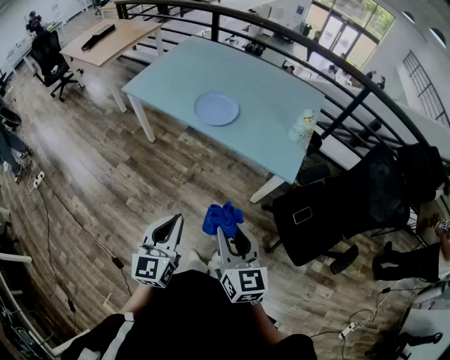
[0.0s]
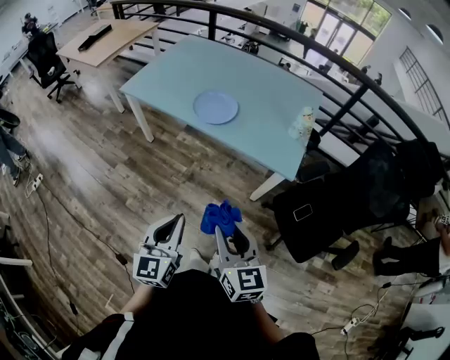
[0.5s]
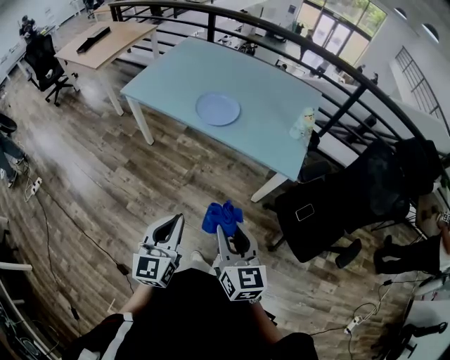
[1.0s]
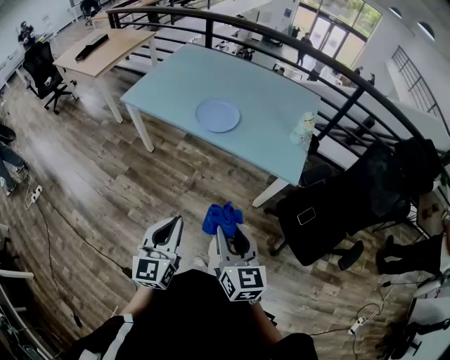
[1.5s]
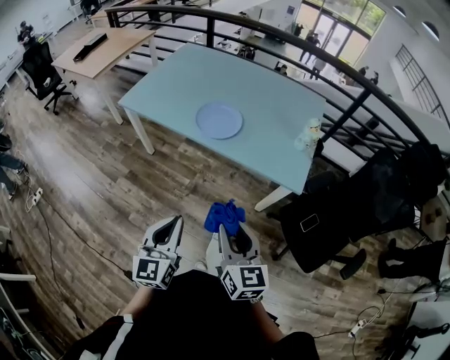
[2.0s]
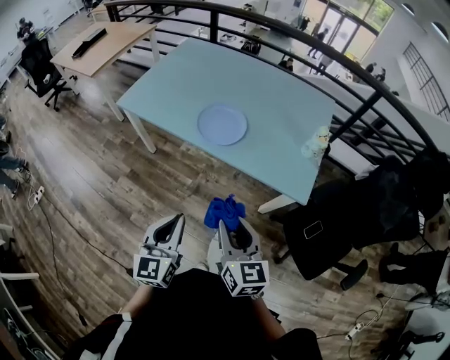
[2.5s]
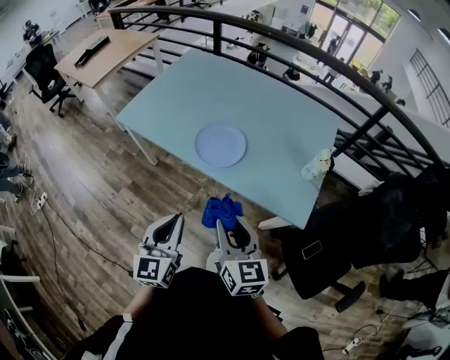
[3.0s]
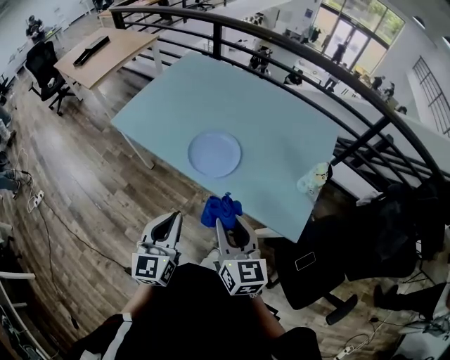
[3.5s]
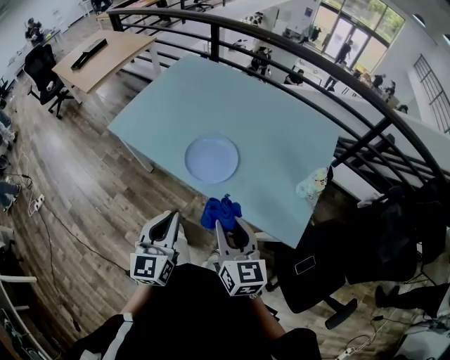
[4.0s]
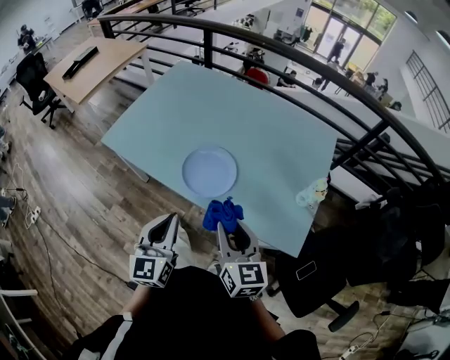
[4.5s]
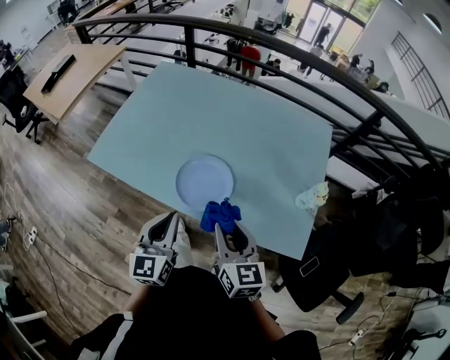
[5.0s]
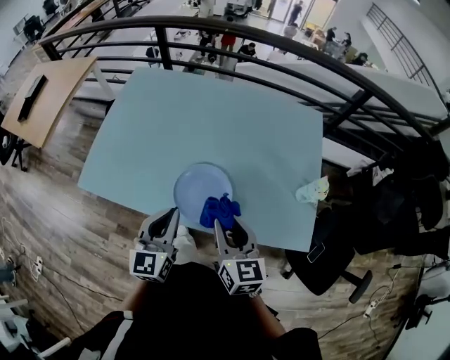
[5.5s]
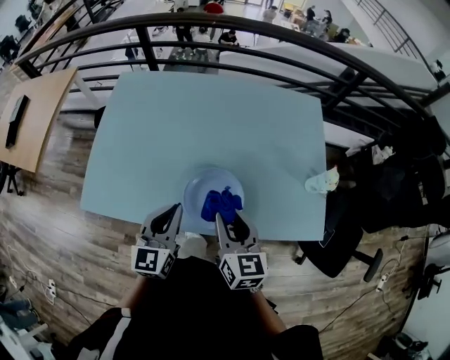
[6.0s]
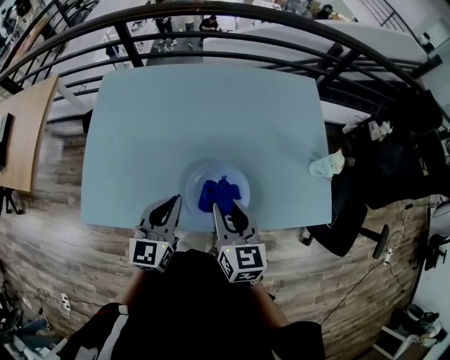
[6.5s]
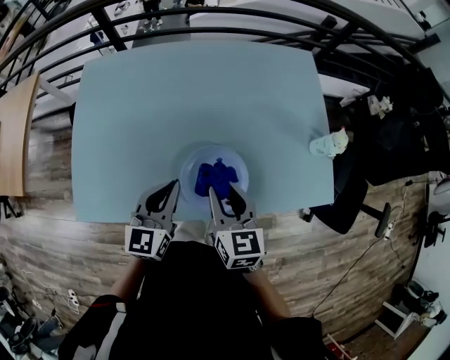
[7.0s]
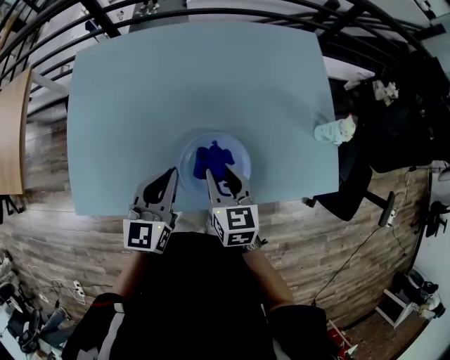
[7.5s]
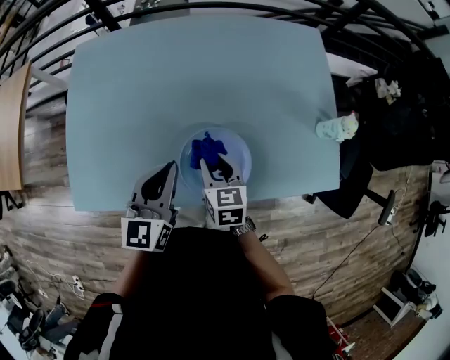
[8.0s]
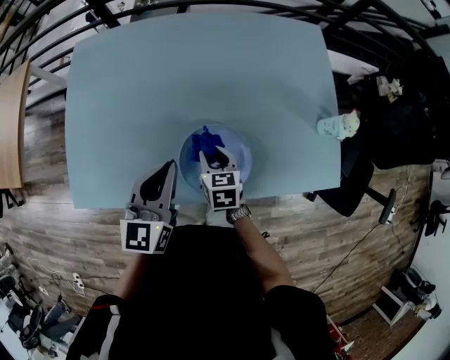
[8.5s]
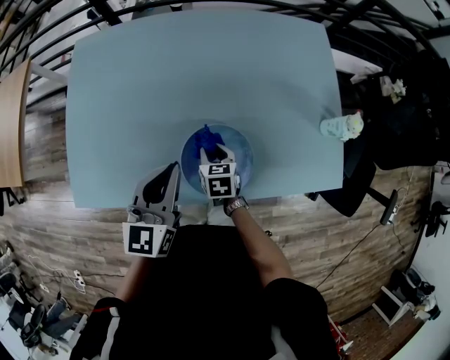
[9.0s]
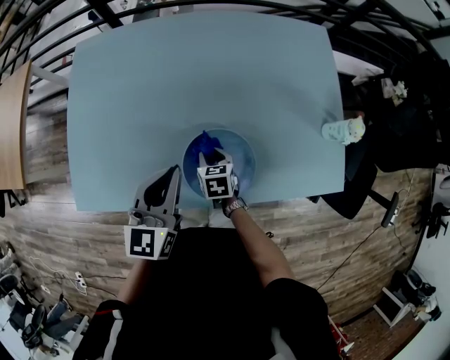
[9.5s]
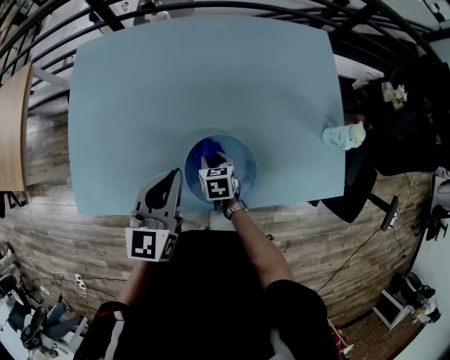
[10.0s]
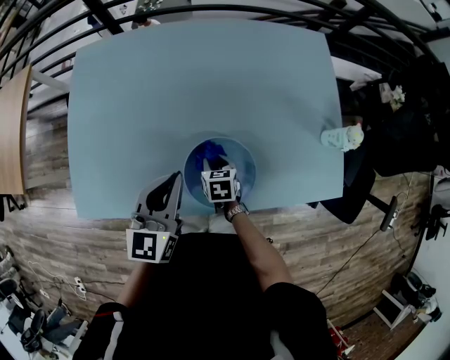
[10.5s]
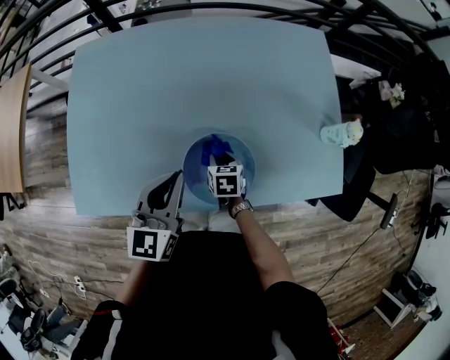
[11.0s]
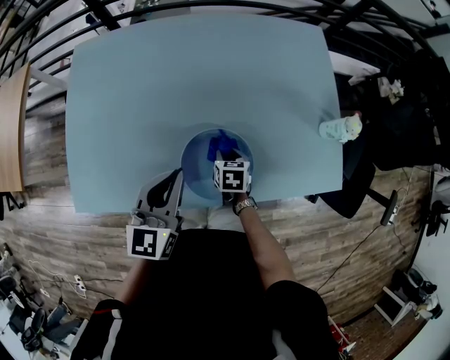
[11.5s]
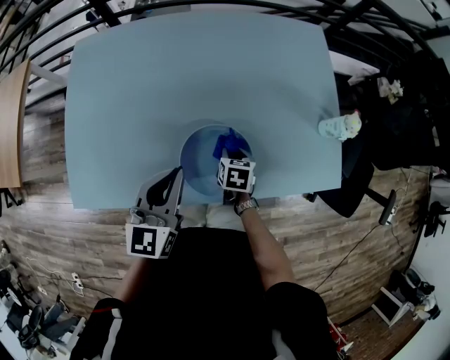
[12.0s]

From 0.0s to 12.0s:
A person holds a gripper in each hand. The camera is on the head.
From 0.0s to 2.0s: The two grippers go roughly 5 cm forward.
From 2.0s to 4.0s: Both grippers move forward, about 25 cm.
From 4.0s to 6.0s: The right gripper changes place by approximately 25 cm, and rotates roughly 30 degrees, while the left gripper moves roughly 30 cm, and rotates approximately 30 degrees.
From 6.0s to 8.0s: The left gripper is displaced forward by approximately 10 cm; the right gripper moves downward and forward, roughly 20 cm.
From 8.0s to 10.0s: The right gripper goes some 15 cm downward, and swivels approximately 20 degrees.
From 10.0s to 12.0s: The right gripper moves to the right, some 10 cm.

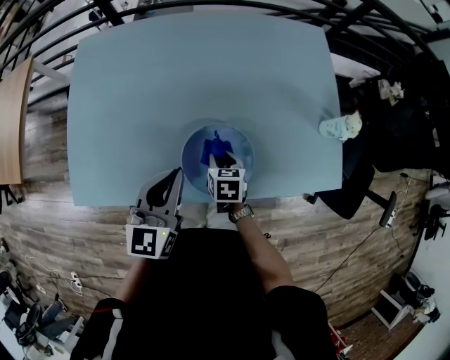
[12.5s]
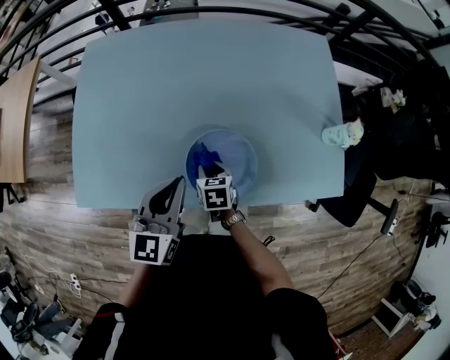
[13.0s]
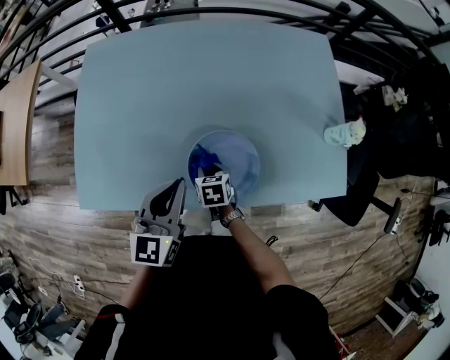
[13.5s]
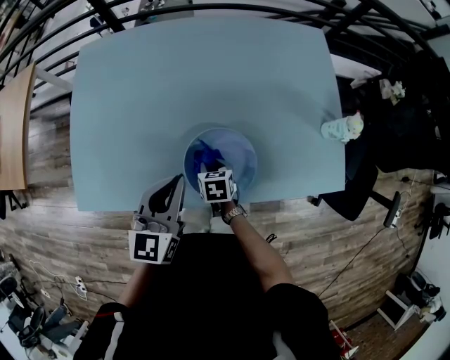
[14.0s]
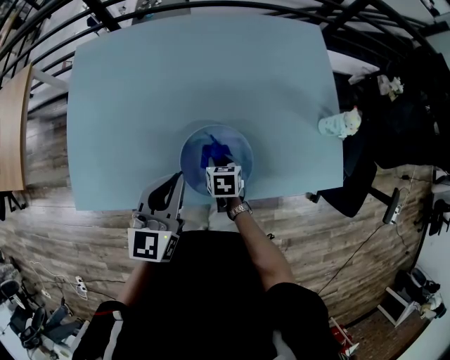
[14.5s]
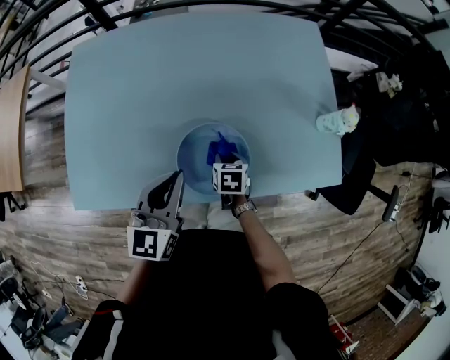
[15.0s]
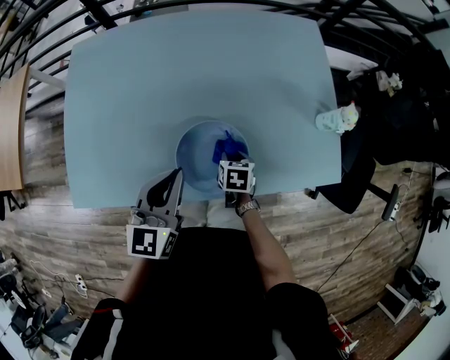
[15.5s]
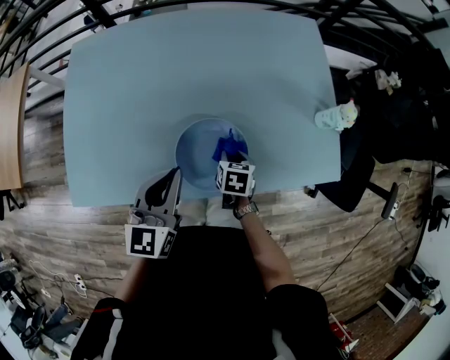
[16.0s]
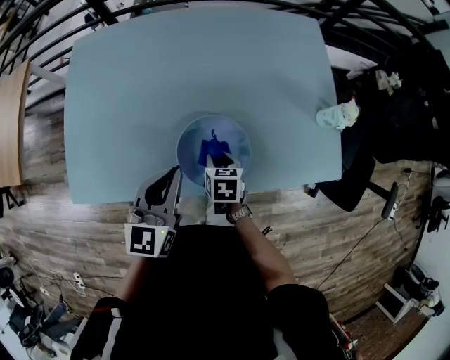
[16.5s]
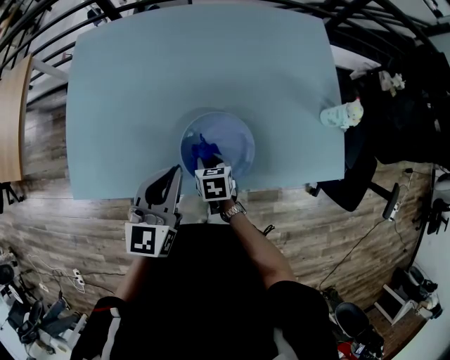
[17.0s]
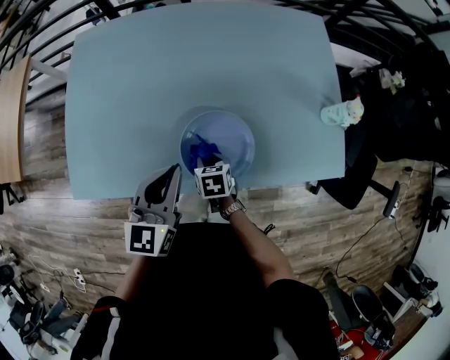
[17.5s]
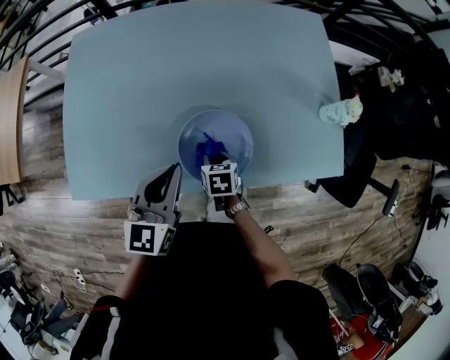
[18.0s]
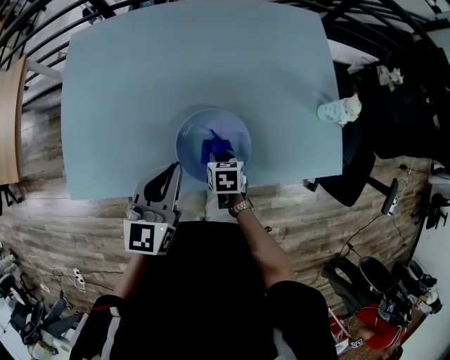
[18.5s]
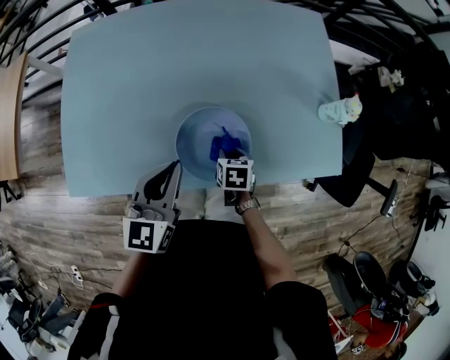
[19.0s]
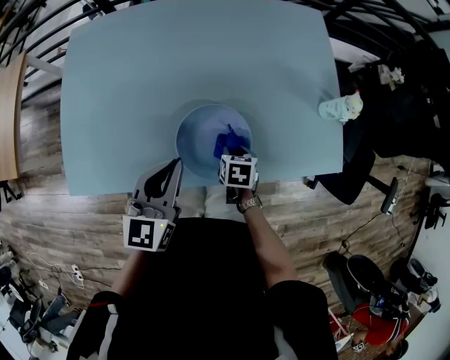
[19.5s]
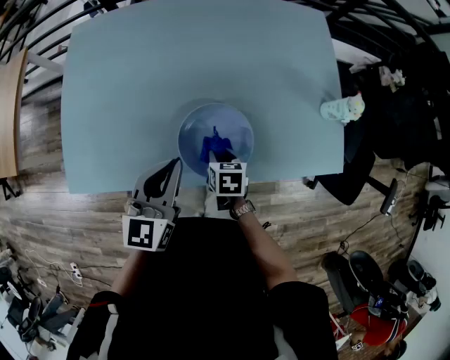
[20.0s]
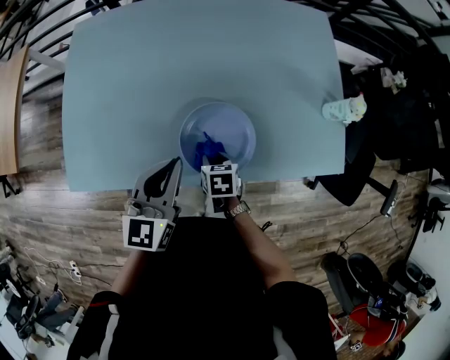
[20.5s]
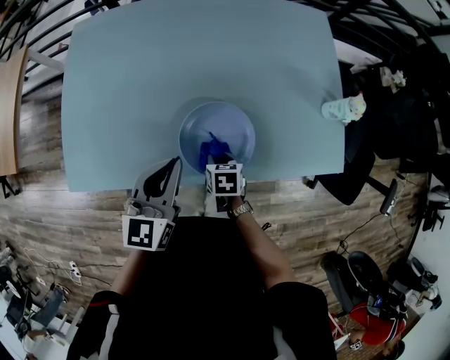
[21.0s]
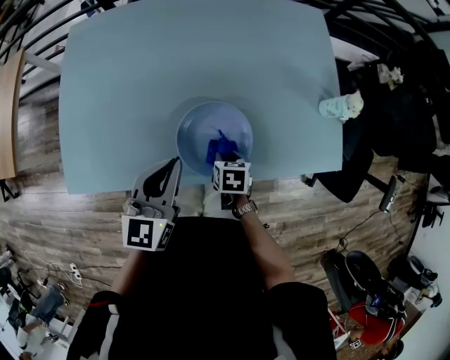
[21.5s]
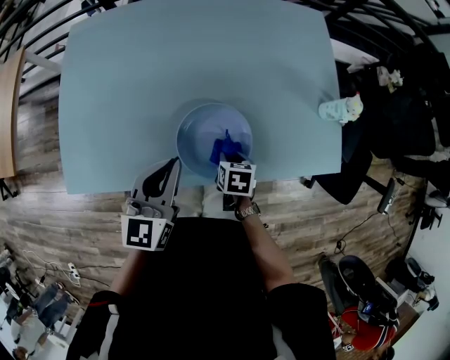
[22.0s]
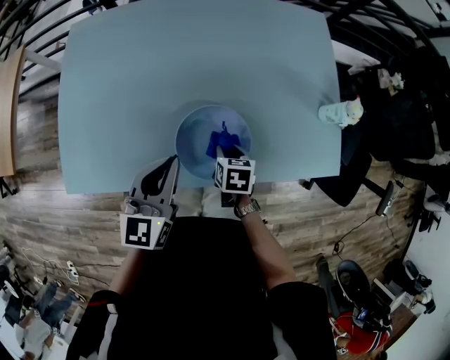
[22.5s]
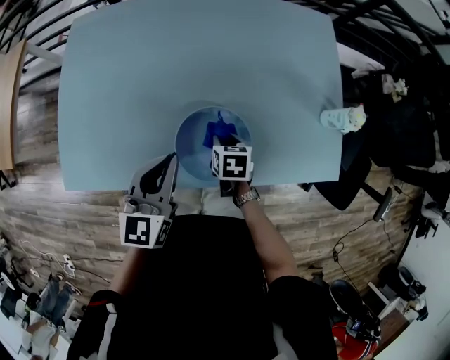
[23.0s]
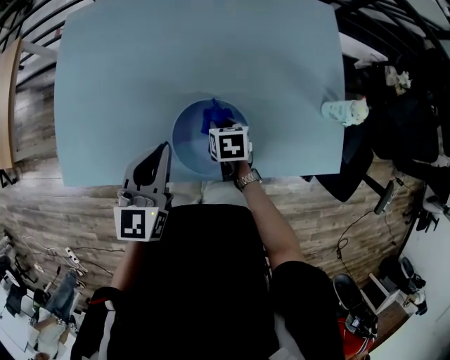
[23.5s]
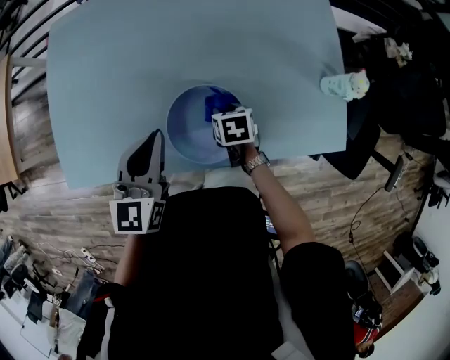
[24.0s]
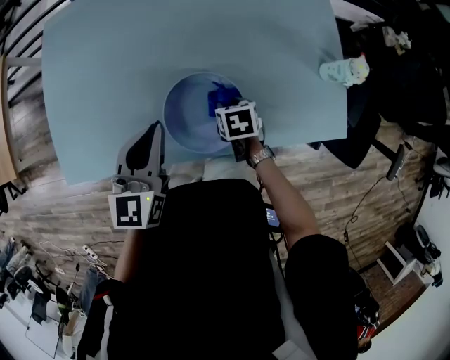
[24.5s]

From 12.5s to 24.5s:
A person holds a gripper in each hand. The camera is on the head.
From 18.5s to 20.5s: The grippers stay close to where they were, moving slightly.
From 20.5s to 22.5s: The right gripper shifts about 5 cm to the right.
From 22.5s to 24.5s: The right gripper shifts by some 5 cm.

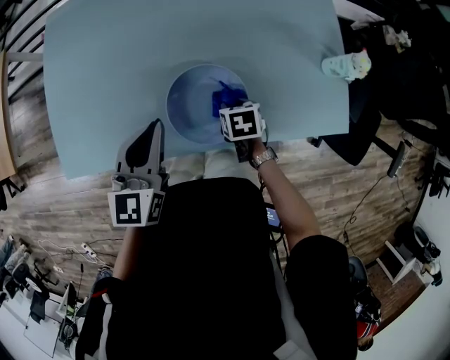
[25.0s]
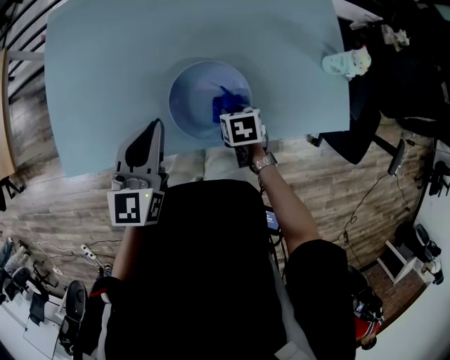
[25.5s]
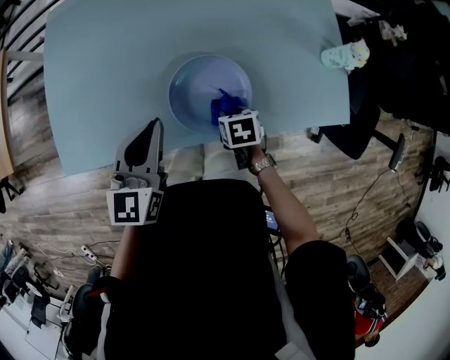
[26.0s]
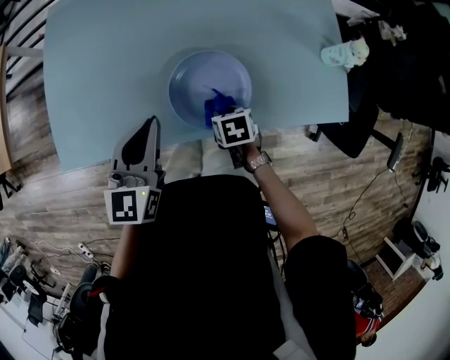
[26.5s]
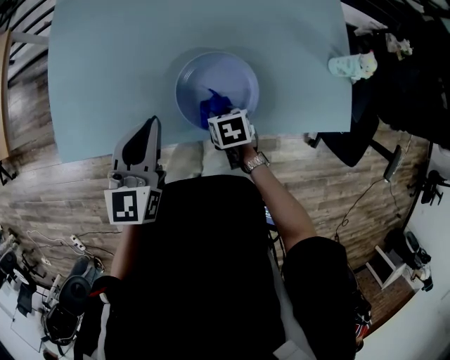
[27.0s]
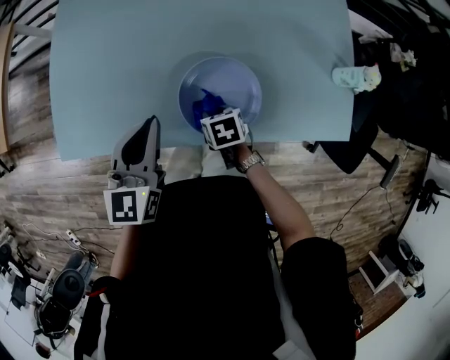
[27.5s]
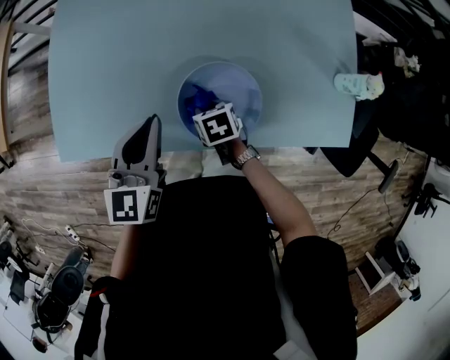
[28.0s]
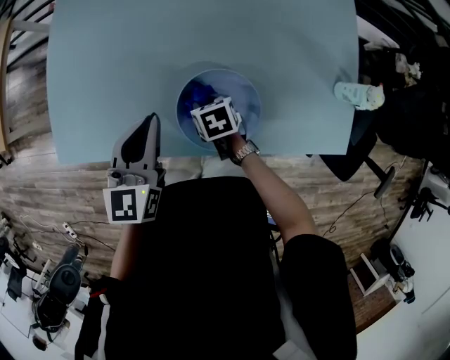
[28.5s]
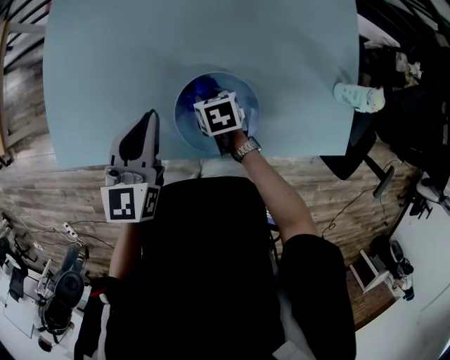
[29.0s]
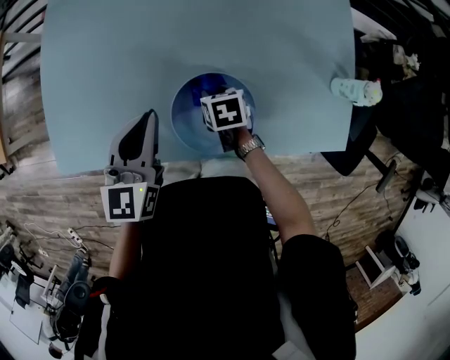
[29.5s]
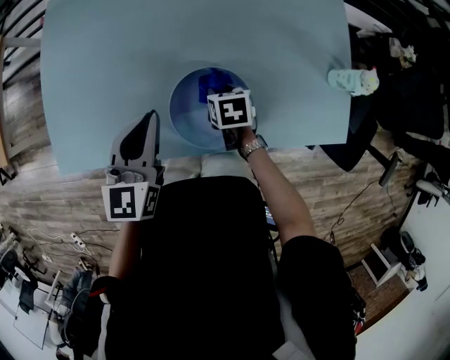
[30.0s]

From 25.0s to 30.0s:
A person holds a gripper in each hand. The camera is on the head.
From 25.0s to 27.5s: The right gripper is displaced to the left by approximately 10 cm. Meanwhile the left gripper moves about 5 cm.
From 27.5s to 30.0s: The right gripper goes roughly 10 cm to the right and forward. Meanwhile the left gripper changes place by about 5 cm.
